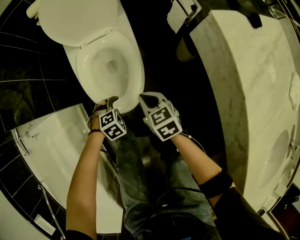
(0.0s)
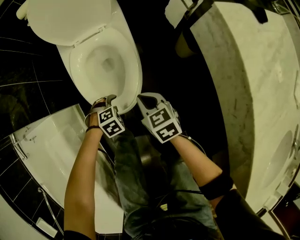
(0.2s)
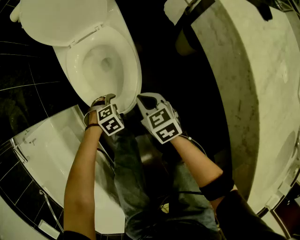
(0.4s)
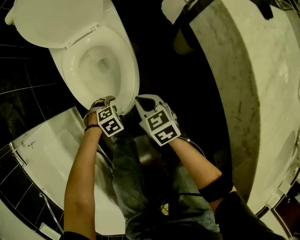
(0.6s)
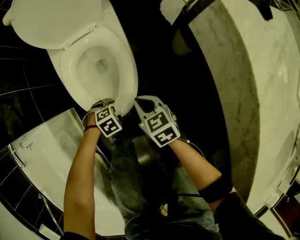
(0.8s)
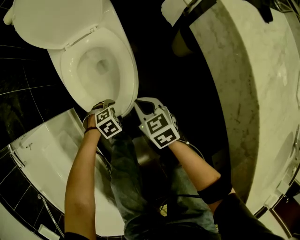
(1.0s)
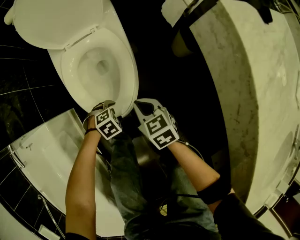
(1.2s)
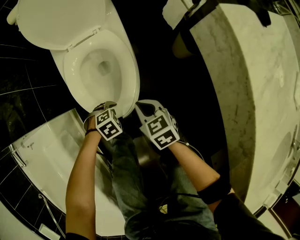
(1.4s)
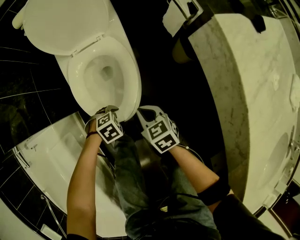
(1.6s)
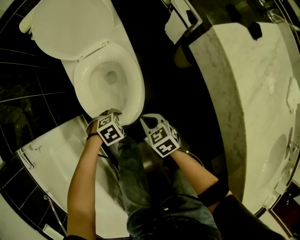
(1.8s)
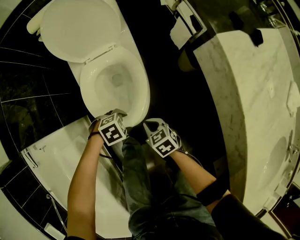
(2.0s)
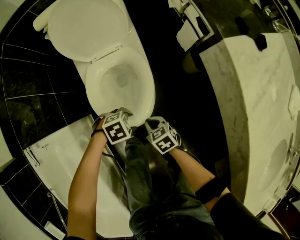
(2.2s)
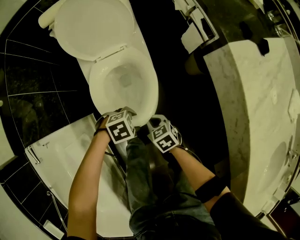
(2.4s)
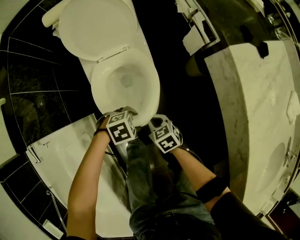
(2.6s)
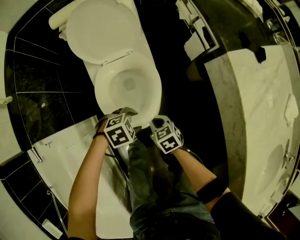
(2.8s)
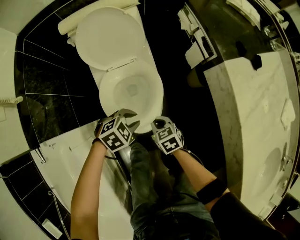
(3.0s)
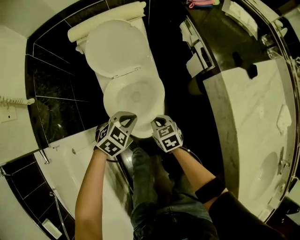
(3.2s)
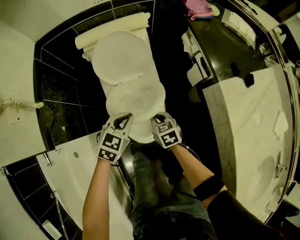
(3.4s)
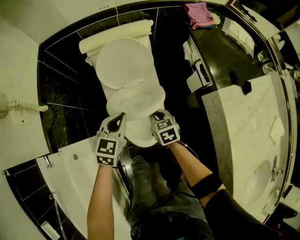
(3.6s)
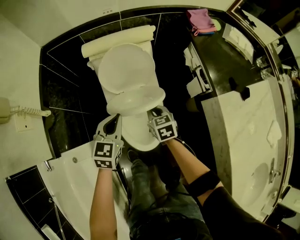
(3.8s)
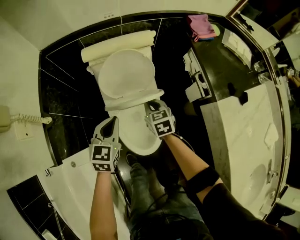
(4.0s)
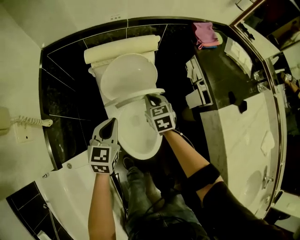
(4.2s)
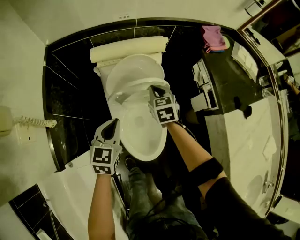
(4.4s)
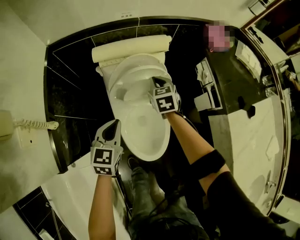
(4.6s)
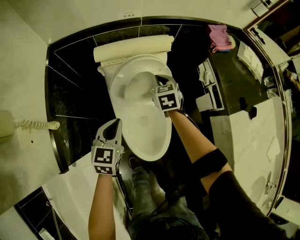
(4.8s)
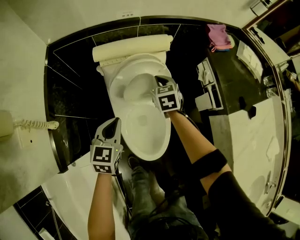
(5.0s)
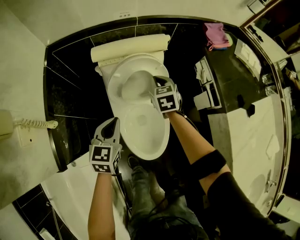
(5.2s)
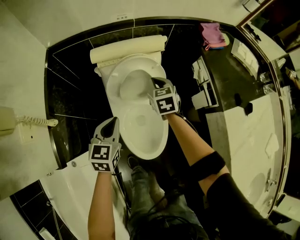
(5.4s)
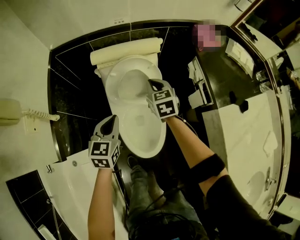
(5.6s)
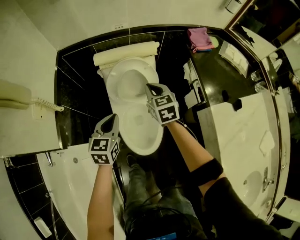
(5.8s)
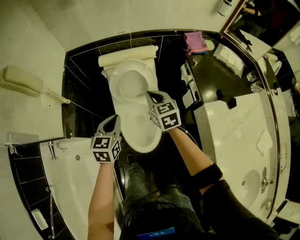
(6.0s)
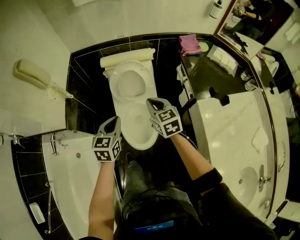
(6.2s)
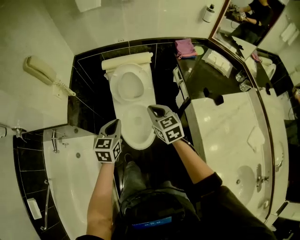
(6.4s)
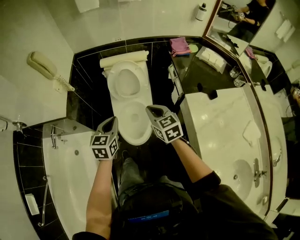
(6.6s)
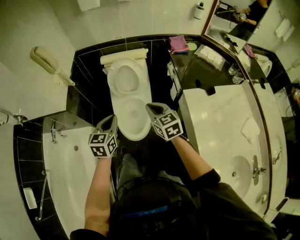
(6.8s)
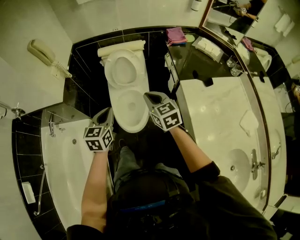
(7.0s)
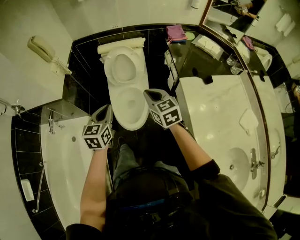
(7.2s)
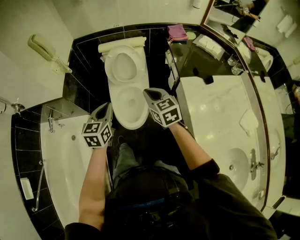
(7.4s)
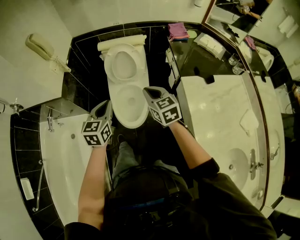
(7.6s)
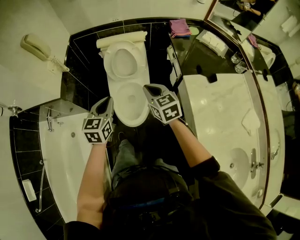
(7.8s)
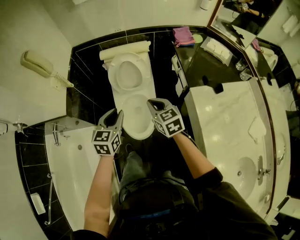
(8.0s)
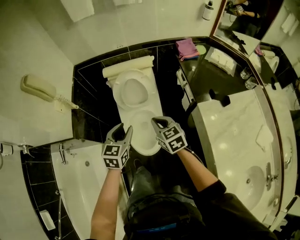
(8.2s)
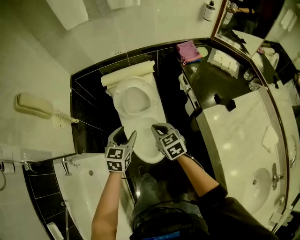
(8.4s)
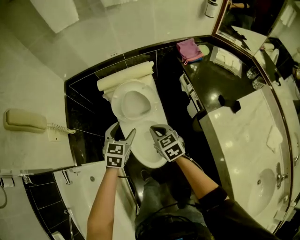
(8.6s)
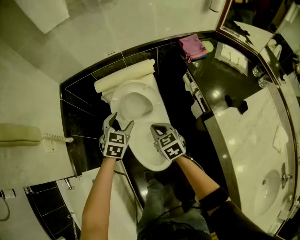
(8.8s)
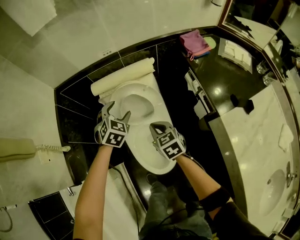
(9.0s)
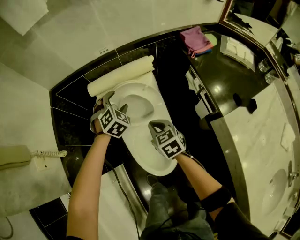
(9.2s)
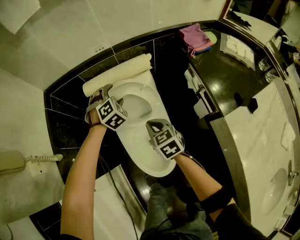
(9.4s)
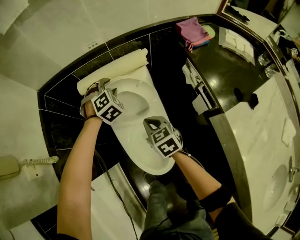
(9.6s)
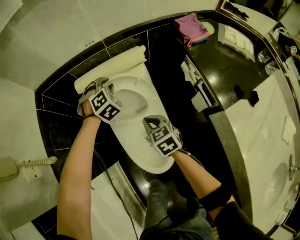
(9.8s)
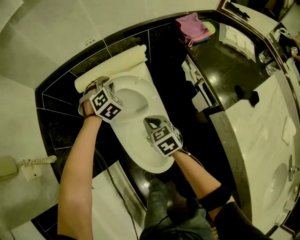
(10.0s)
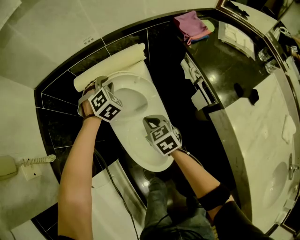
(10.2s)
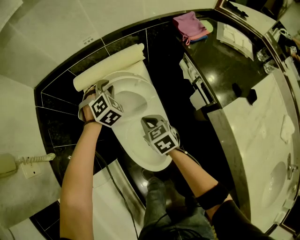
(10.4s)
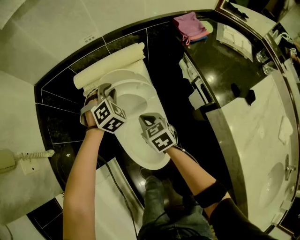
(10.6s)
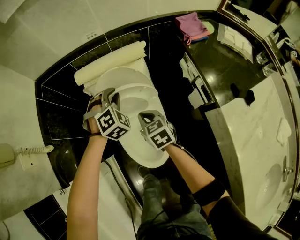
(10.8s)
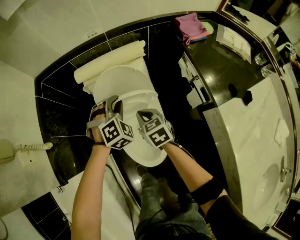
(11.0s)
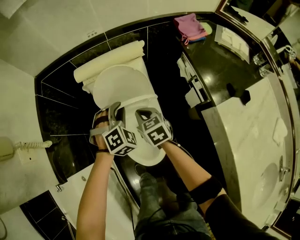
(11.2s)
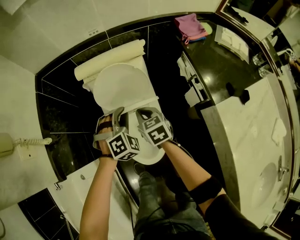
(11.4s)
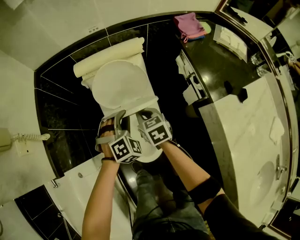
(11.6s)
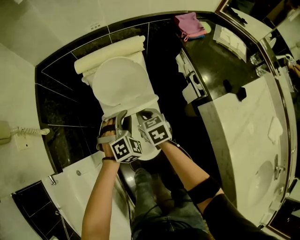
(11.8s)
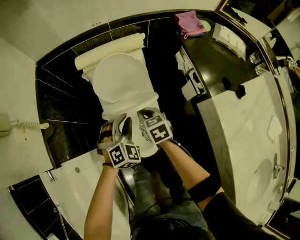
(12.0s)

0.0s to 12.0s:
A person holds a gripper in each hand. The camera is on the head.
0.0s to 1.6s: The left gripper travels downward and back again, roughly 10 cm each way.
1.6s to 3.0s: The right gripper changes place by roughly 10 cm; the left gripper is displaced upward by roughly 20 cm, and closes up.
3.0s to 4.4s: The left gripper shifts by roughly 30 cm, and turns by approximately 60 degrees, while the right gripper ends up some 40 cm from where it was, and turns by about 20 degrees.
4.4s to 6.0s: The right gripper moves upward and backward, about 20 cm, while the left gripper heads upward, backward and to the right, covering about 15 cm.
6.0s to 7.6s: The right gripper heads backward, covering roughly 25 cm; the left gripper moves backward and upward, approximately 20 cm.
7.6s to 9.0s: Both grippers travel together forward and downward, some 40 cm. The left gripper rotates around the line of its fingers by some 40 degrees, clockwise from behind, and opens its fingers.
9.0s to 10.4s: The right gripper heads downward, covering roughly 5 cm; the left gripper is displaced forward by roughly 10 cm, turns by some 30 degrees, and closes.
10.4s to 12.0s: The right gripper moves backward, approximately 5 cm. The left gripper is displaced backward by roughly 25 cm.

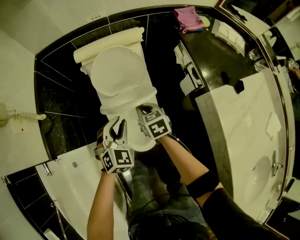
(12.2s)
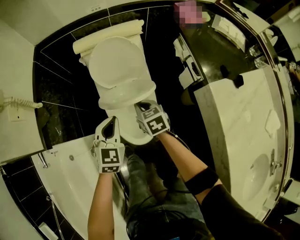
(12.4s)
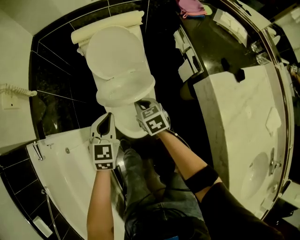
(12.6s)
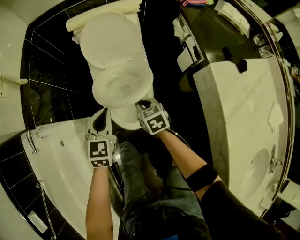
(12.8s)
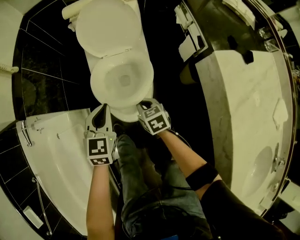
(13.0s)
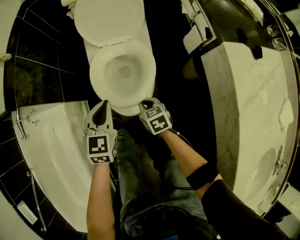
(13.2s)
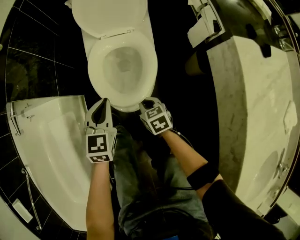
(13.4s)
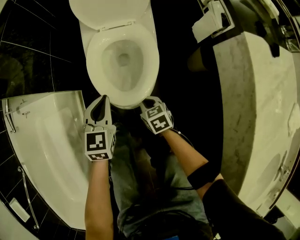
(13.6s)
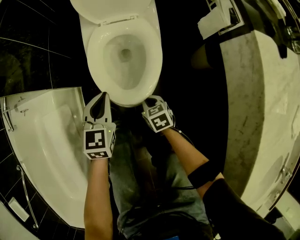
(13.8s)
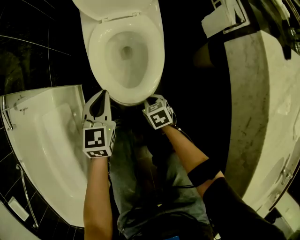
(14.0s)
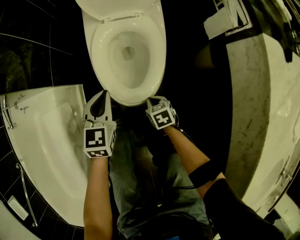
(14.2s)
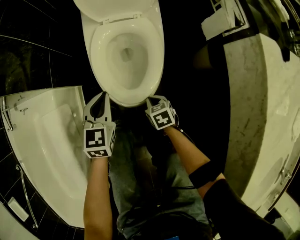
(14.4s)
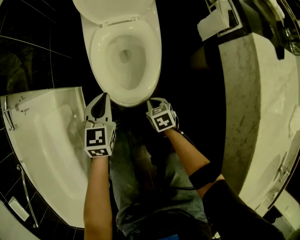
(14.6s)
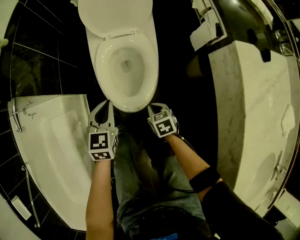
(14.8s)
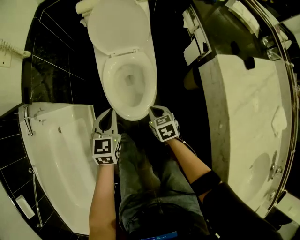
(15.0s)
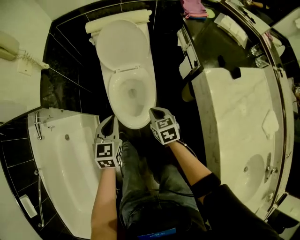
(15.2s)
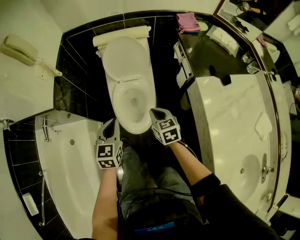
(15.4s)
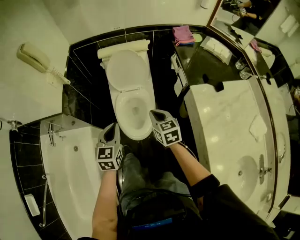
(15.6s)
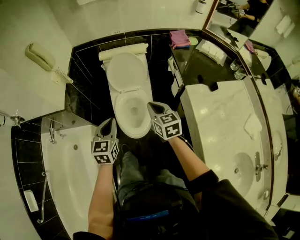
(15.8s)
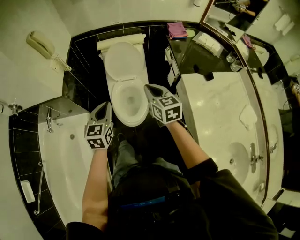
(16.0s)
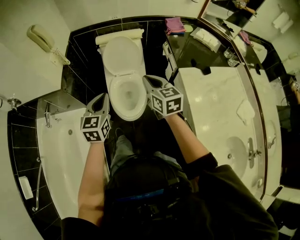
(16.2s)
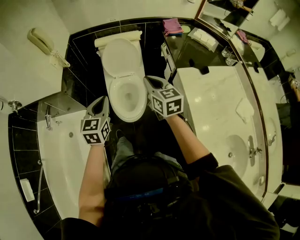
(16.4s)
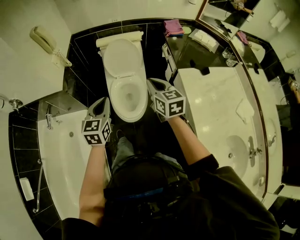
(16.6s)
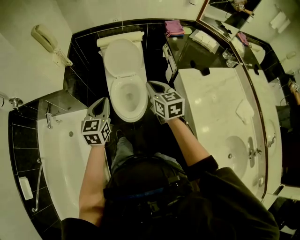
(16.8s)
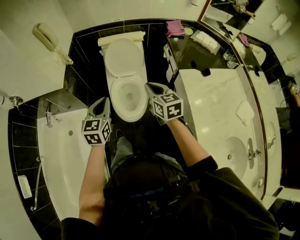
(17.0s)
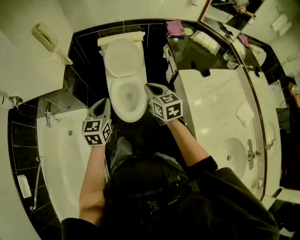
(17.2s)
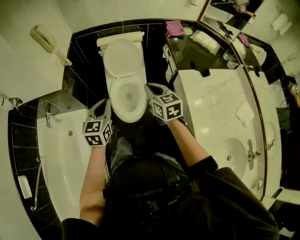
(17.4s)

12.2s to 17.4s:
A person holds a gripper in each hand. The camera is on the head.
12.2s to 14.0s: The right gripper moves downward and backward, some 40 cm, and changes its angle by about 20 degrees; the left gripper shifts roughly 30 cm downward and backward, and rotates roughly 30 degrees.
14.0s to 15.6s: The grippers both shift upward by approximately 40 cm. The right gripper turns by roughly 30 degrees.
15.6s to 17.4s: The two grippers go approximately 15 cm upward and backward.

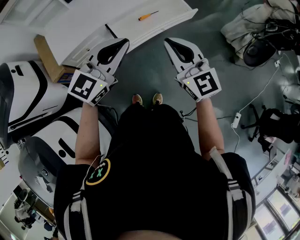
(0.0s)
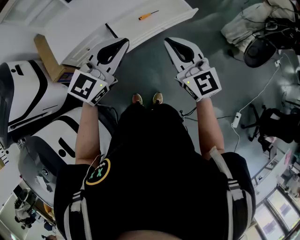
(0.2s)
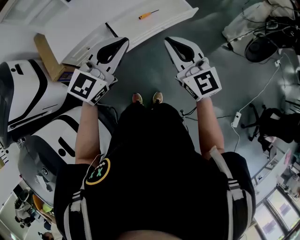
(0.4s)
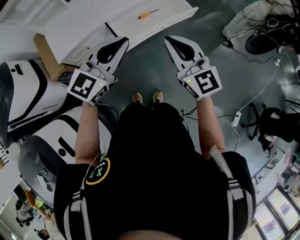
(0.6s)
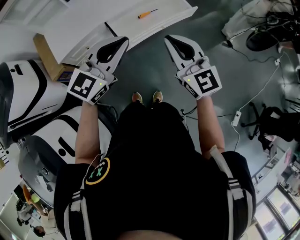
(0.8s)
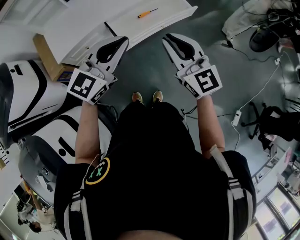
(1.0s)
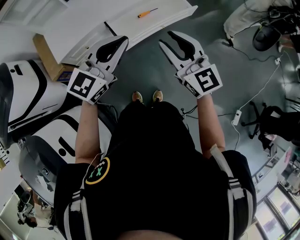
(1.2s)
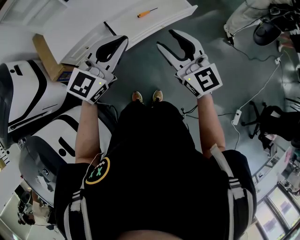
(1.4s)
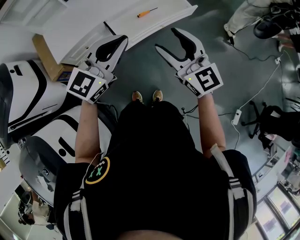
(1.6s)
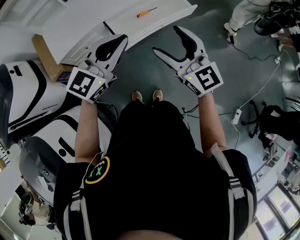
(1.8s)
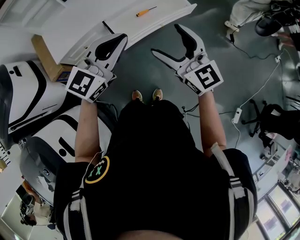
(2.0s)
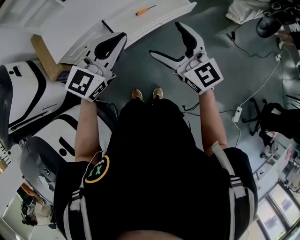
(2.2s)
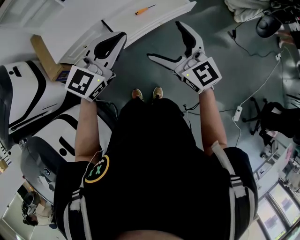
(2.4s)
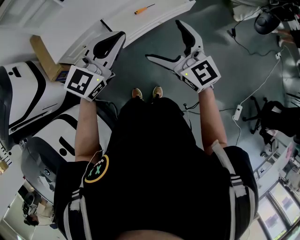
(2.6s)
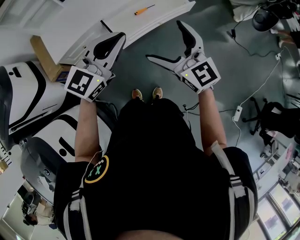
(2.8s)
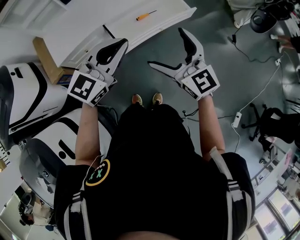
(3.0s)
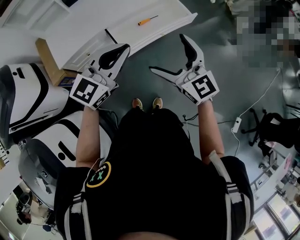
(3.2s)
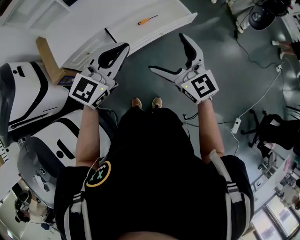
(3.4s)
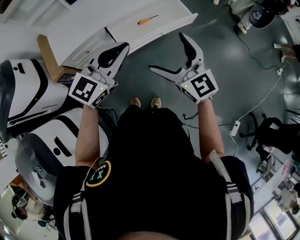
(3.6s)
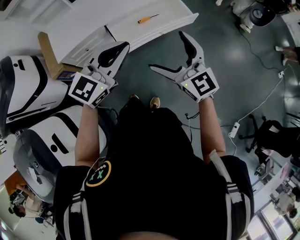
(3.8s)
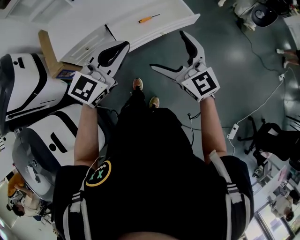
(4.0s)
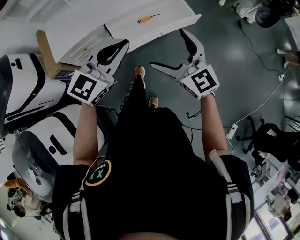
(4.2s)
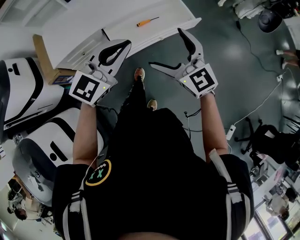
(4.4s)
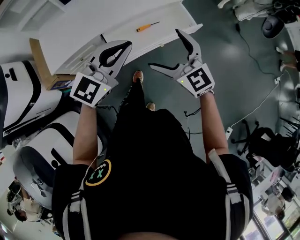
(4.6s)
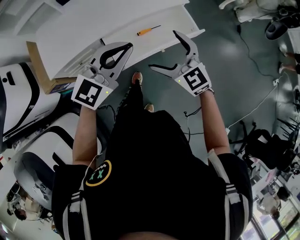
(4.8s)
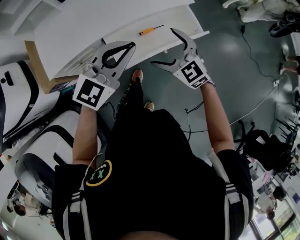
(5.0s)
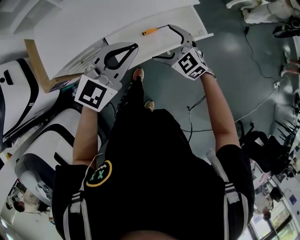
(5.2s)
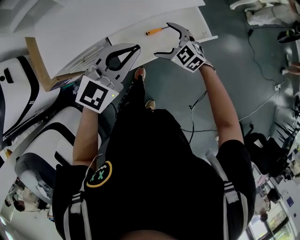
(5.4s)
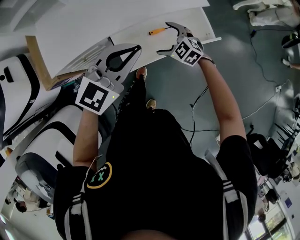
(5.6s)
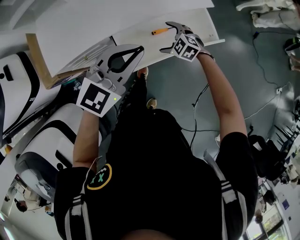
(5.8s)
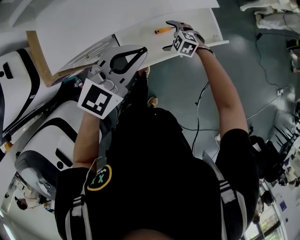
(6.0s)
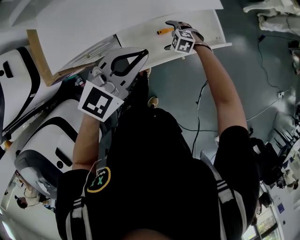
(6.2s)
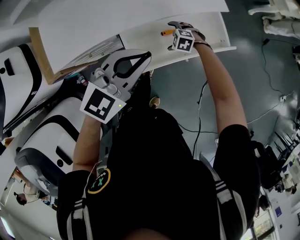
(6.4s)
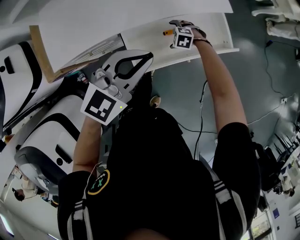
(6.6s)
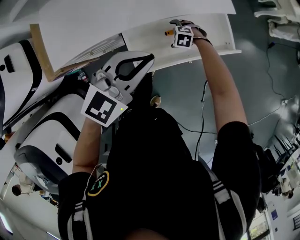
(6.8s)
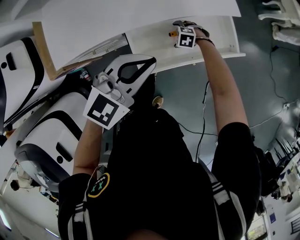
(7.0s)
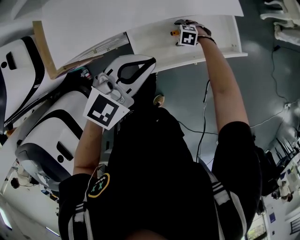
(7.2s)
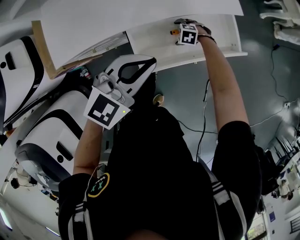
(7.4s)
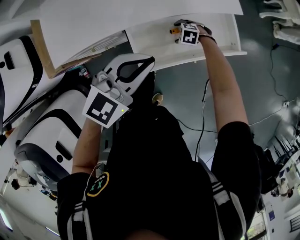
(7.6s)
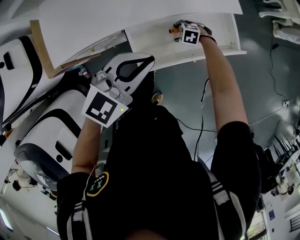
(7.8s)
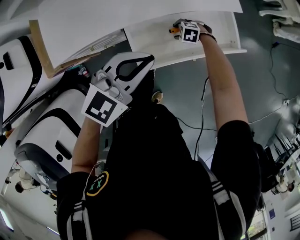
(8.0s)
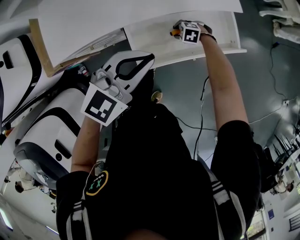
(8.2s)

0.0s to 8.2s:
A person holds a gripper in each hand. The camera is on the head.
0.0s to 1.6s: The right gripper opens.
1.6s to 3.2s: The right gripper opens its fingers.
3.2s to 5.0s: The right gripper heads forward and downward, covering approximately 25 cm, and changes its angle by roughly 30 degrees, while the left gripper heads forward, covering some 20 cm.
5.0s to 6.6s: The right gripper moves downward, some 35 cm, and tilts its fingers about 50 degrees downward, while the left gripper is displaced downward by some 10 cm.
6.6s to 8.2s: The right gripper closes.
